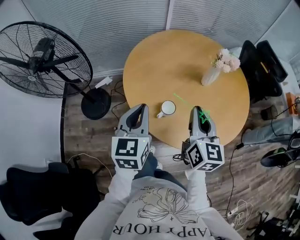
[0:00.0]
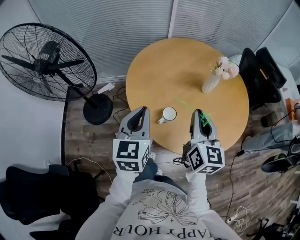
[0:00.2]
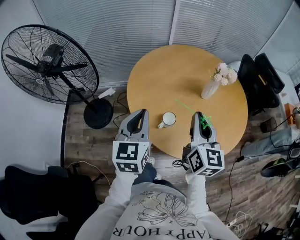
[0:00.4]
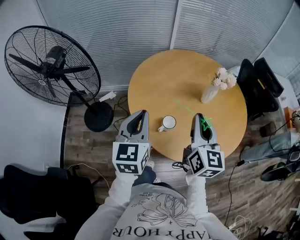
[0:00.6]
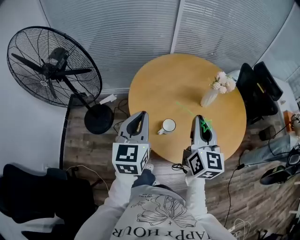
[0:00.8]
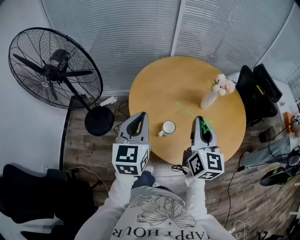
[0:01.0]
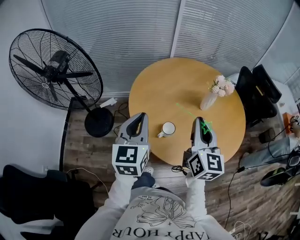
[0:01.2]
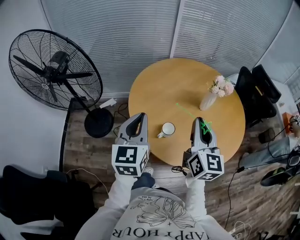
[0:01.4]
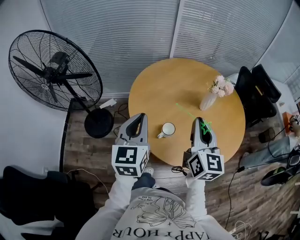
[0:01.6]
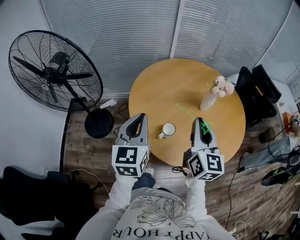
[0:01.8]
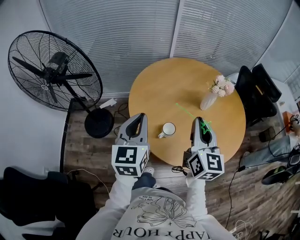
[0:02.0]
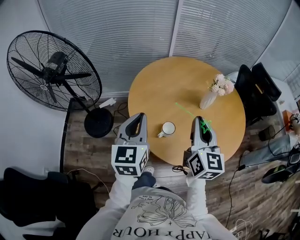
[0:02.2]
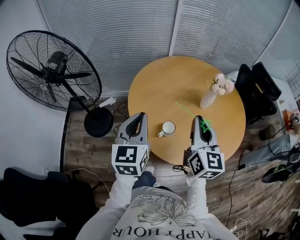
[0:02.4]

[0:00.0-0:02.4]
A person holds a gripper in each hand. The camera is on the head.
0:00.0 to 0:01.2: Both grippers travel together upward, some 5 cm.
0:01.2 to 0:02.4: Neither gripper changes place.

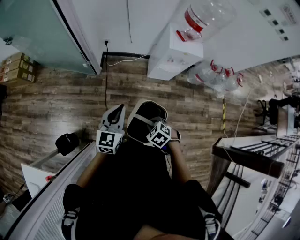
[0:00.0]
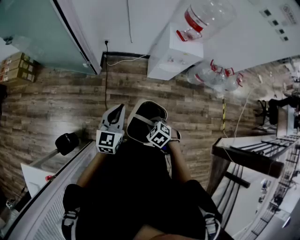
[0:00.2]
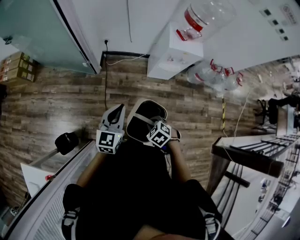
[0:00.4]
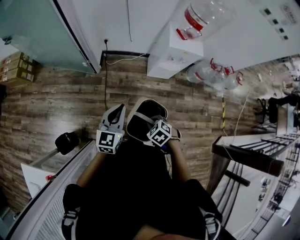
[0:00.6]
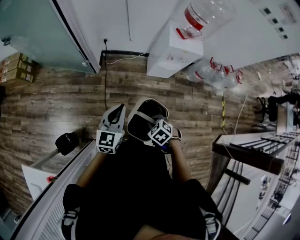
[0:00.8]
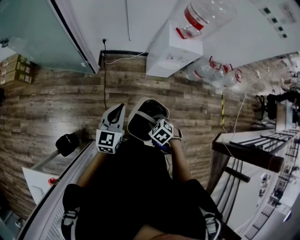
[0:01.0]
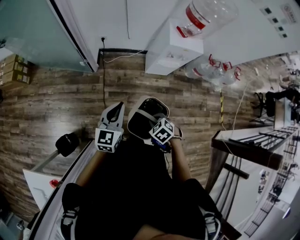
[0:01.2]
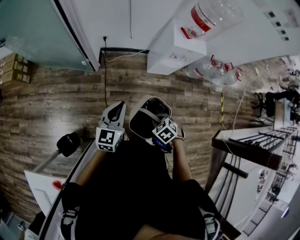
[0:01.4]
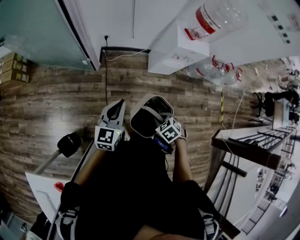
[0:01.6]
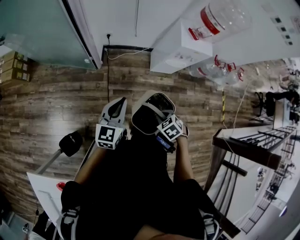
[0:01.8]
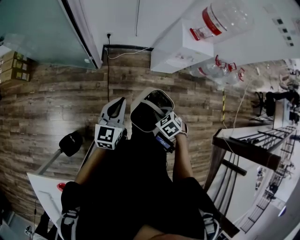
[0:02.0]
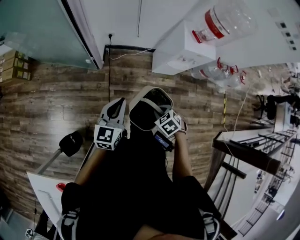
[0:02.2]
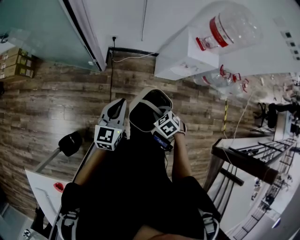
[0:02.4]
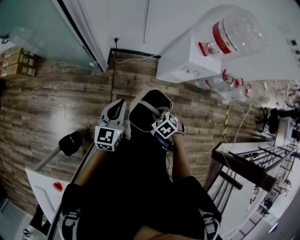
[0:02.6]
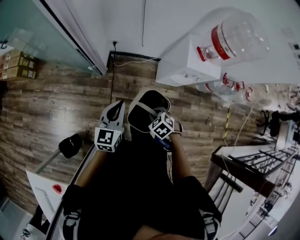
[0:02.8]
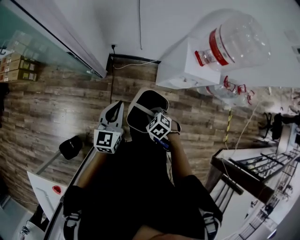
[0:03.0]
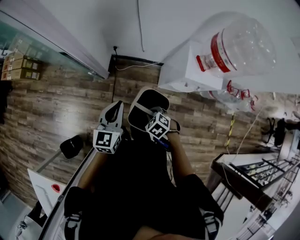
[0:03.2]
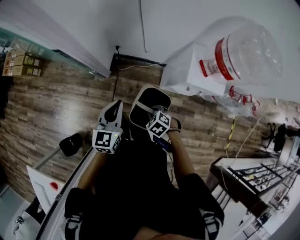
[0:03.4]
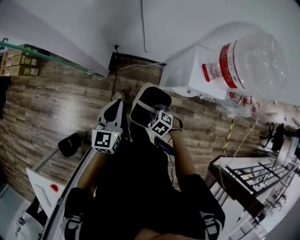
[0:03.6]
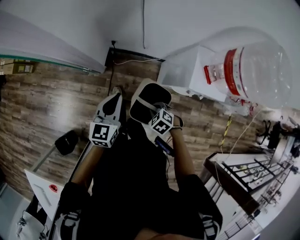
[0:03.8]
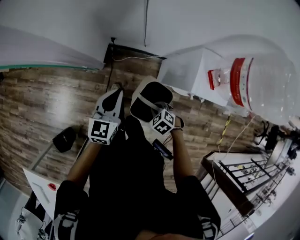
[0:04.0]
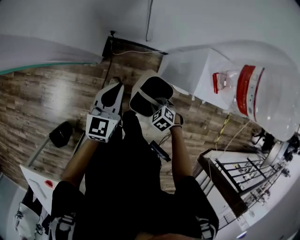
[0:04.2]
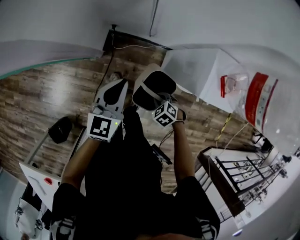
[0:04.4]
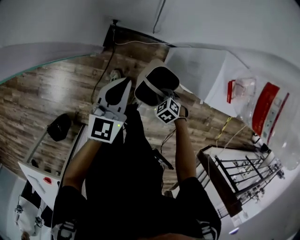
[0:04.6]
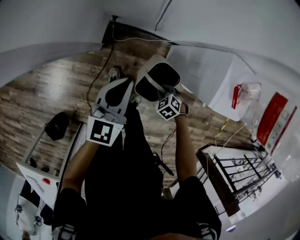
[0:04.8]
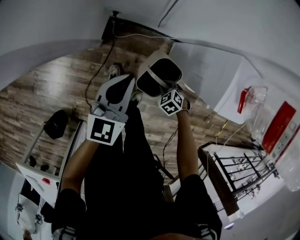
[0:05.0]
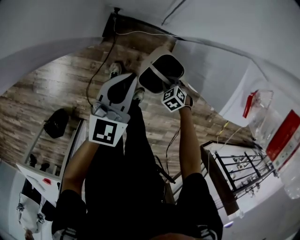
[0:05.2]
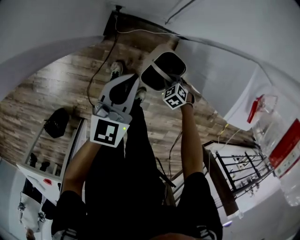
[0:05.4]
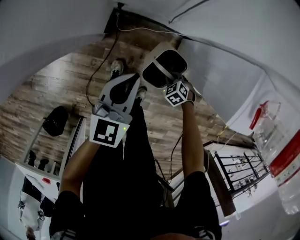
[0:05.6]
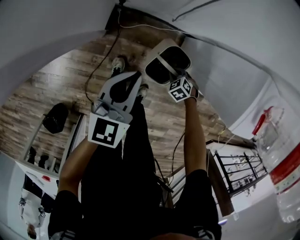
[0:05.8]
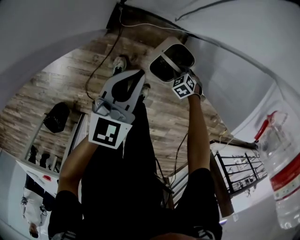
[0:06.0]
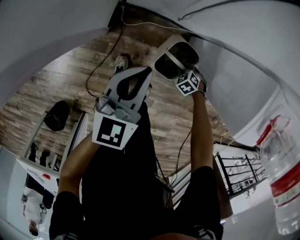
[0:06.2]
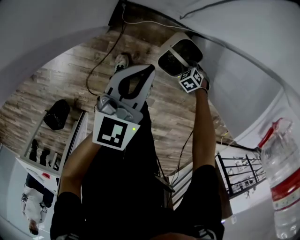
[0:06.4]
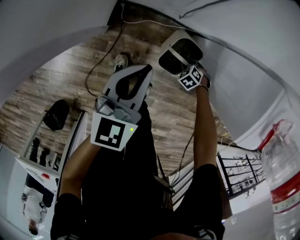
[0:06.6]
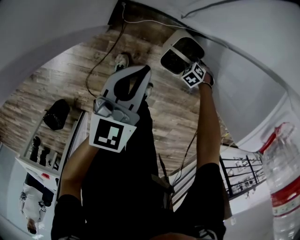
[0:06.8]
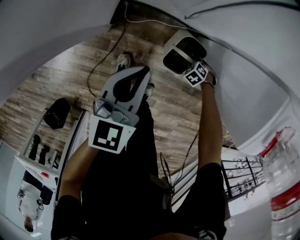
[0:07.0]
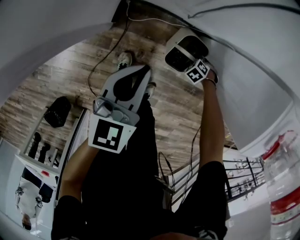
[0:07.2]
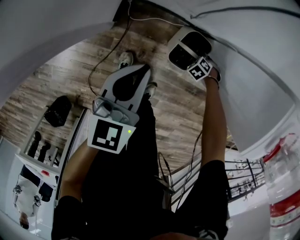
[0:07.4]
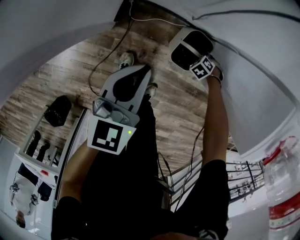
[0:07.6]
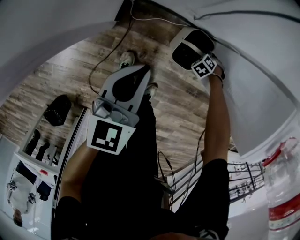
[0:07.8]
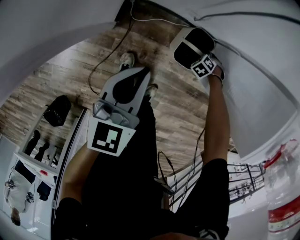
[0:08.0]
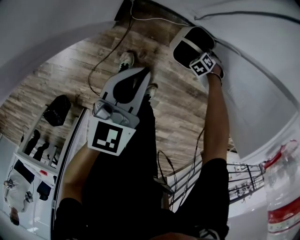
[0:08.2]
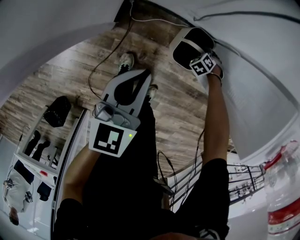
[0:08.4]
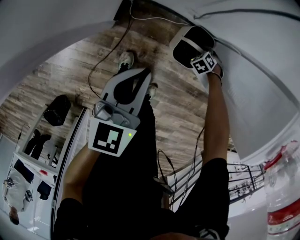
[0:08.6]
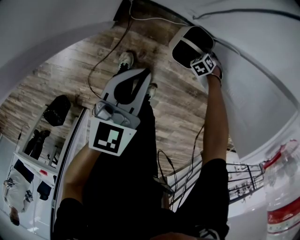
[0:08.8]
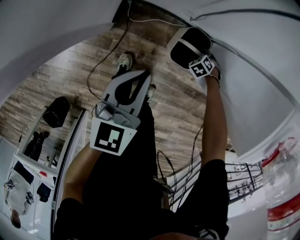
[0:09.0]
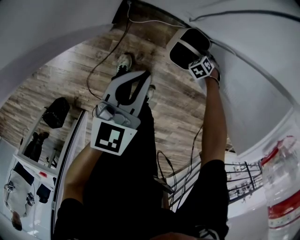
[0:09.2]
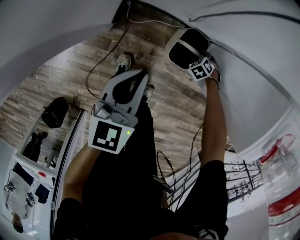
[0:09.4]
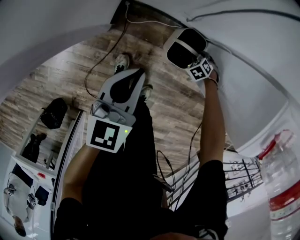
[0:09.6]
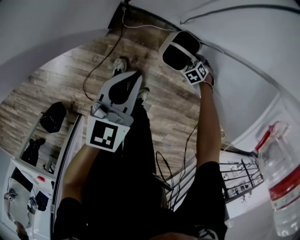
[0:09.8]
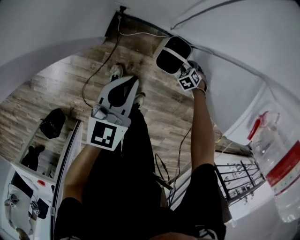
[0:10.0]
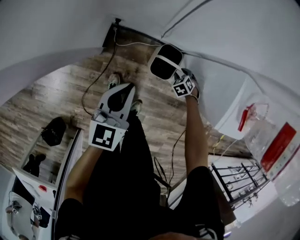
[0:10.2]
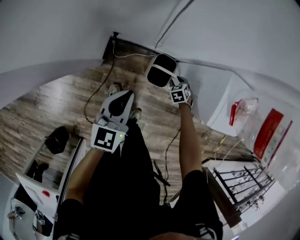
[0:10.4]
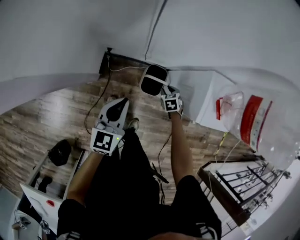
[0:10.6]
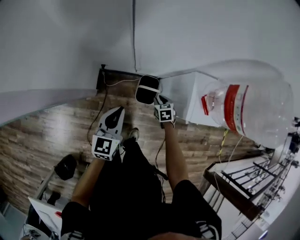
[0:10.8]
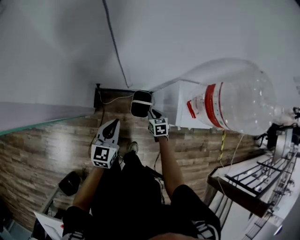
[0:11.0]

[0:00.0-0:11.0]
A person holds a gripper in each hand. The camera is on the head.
0:00.0 to 0:01.6: The right gripper ends up roughly 5 cm from where it was. The left gripper travels to the left and forward by roughly 10 cm.
0:01.6 to 0:03.2: The right gripper heads forward, covering some 25 cm; the left gripper travels forward and to the right by approximately 20 cm.
0:03.2 to 0:04.8: The right gripper shifts some 25 cm downward. The left gripper ends up some 25 cm from where it was.
0:04.8 to 0:06.2: The left gripper shifts some 10 cm downward. Meanwhile the right gripper is displaced downward by some 20 cm.
0:06.2 to 0:07.8: The left gripper goes some 5 cm downward. Meanwhile the right gripper is displaced downward by roughly 10 cm.
0:07.8 to 0:09.4: The right gripper opens up.
0:09.4 to 0:11.0: The left gripper travels upward by roughly 25 cm. The right gripper is displaced upward by roughly 40 cm, and rolls clockwise, seen from behind, by about 50 degrees.

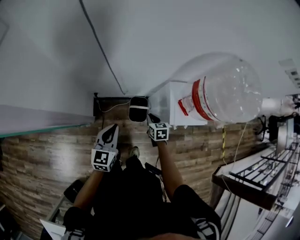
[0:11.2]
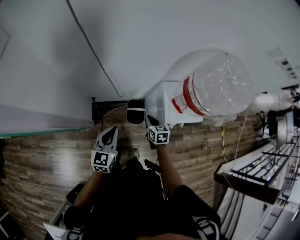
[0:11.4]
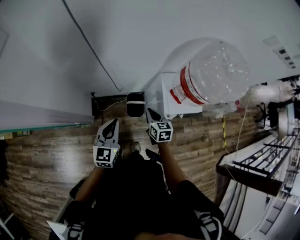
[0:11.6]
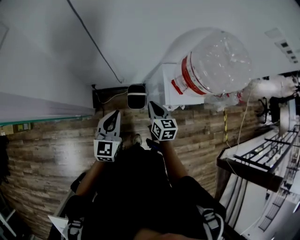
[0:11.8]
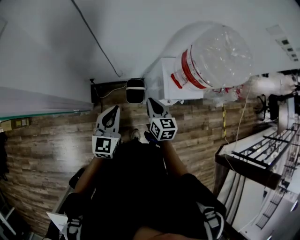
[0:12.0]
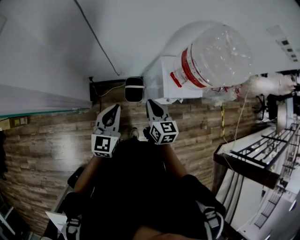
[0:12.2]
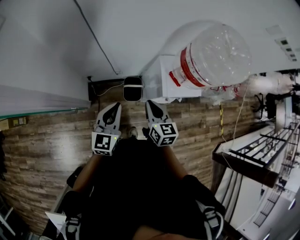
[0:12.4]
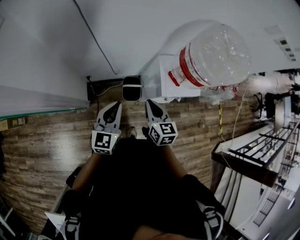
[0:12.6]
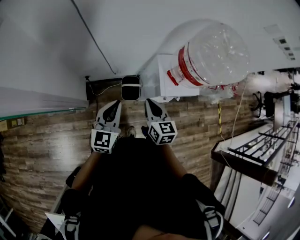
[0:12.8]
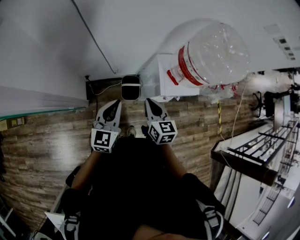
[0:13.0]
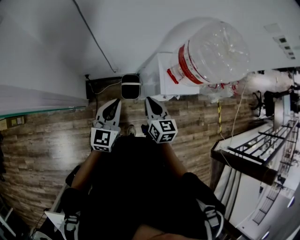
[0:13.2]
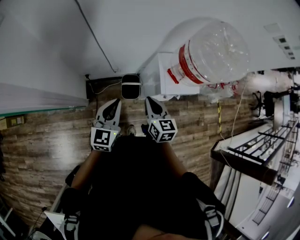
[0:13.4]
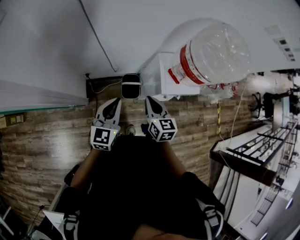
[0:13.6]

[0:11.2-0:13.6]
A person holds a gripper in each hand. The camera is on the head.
0:11.2 to 0:12.4: The right gripper shifts approximately 25 cm upward and backward, and turns by about 20 degrees. The left gripper heads upward, covering roughly 10 cm.
0:12.4 to 0:13.6: Both grippers stay about where they are.

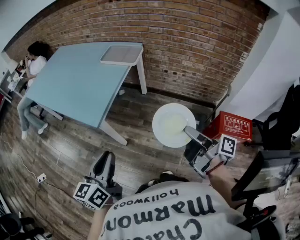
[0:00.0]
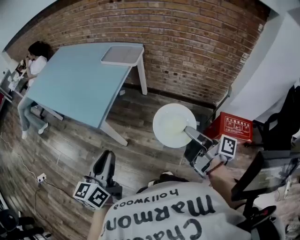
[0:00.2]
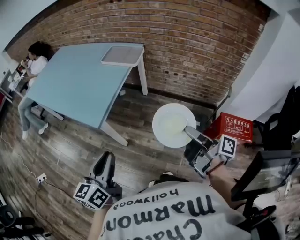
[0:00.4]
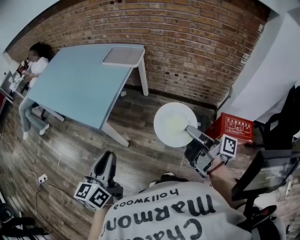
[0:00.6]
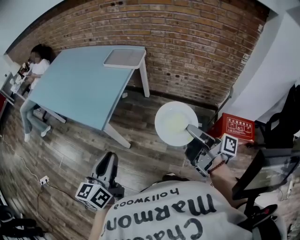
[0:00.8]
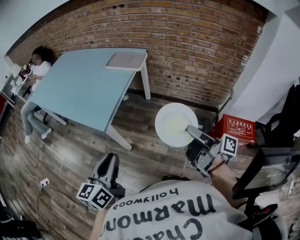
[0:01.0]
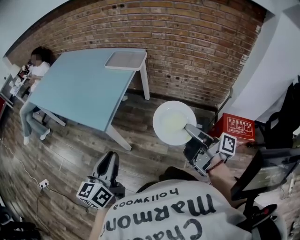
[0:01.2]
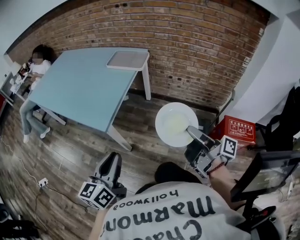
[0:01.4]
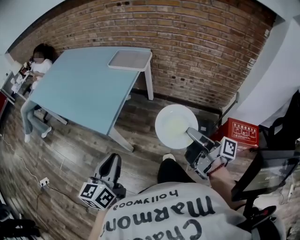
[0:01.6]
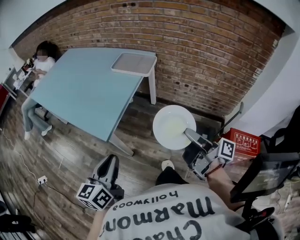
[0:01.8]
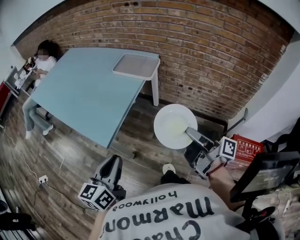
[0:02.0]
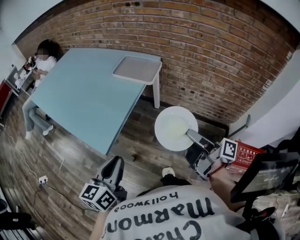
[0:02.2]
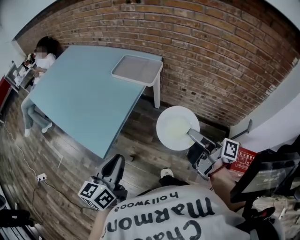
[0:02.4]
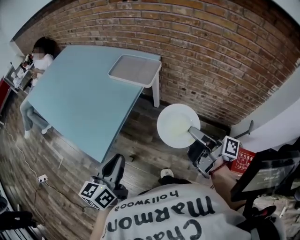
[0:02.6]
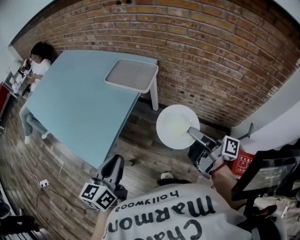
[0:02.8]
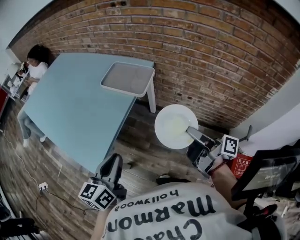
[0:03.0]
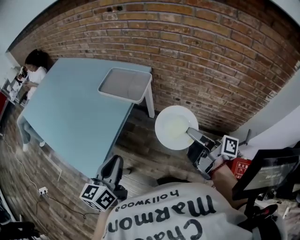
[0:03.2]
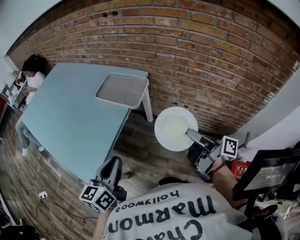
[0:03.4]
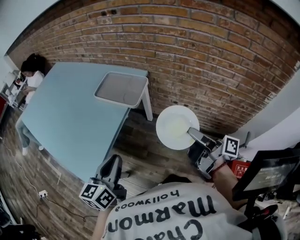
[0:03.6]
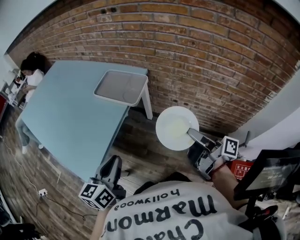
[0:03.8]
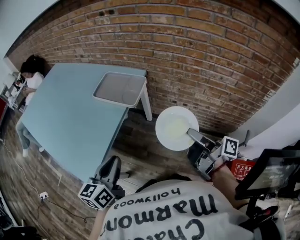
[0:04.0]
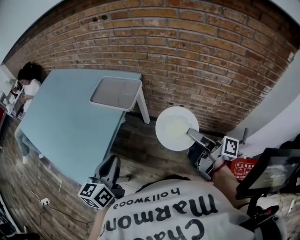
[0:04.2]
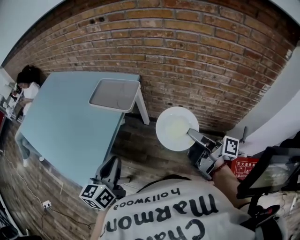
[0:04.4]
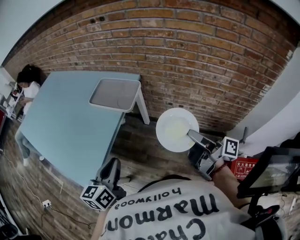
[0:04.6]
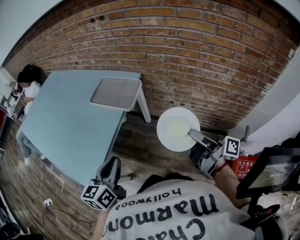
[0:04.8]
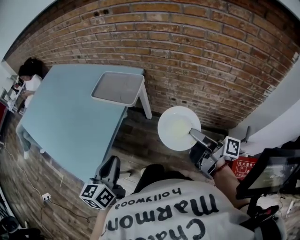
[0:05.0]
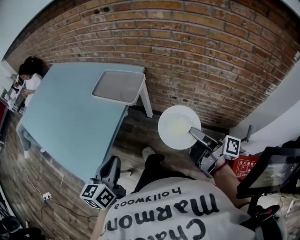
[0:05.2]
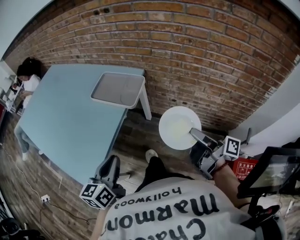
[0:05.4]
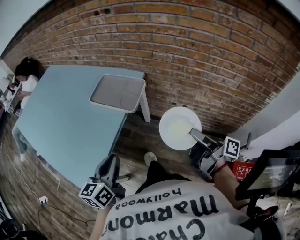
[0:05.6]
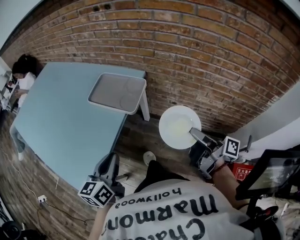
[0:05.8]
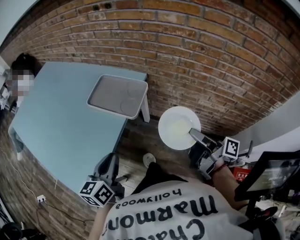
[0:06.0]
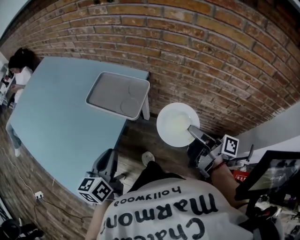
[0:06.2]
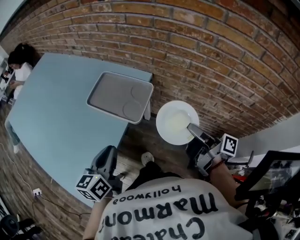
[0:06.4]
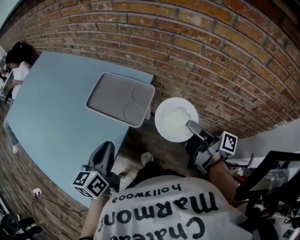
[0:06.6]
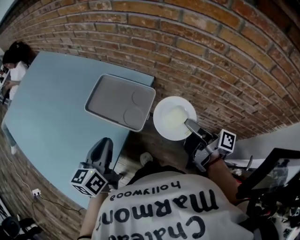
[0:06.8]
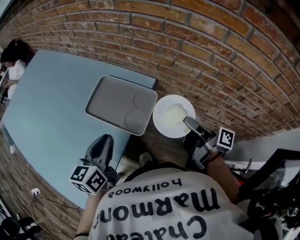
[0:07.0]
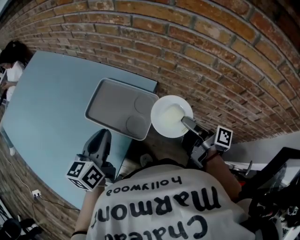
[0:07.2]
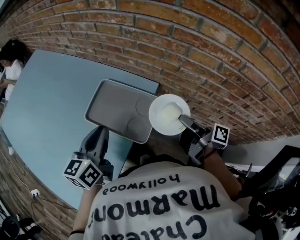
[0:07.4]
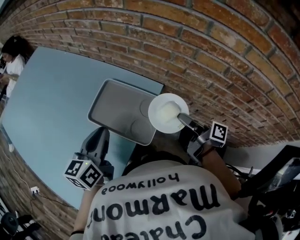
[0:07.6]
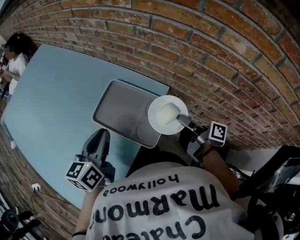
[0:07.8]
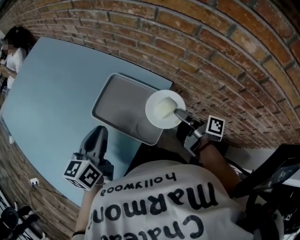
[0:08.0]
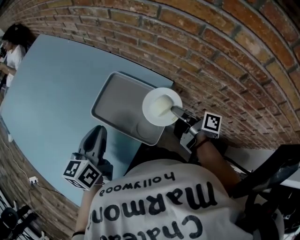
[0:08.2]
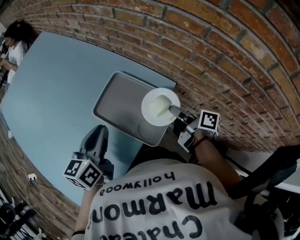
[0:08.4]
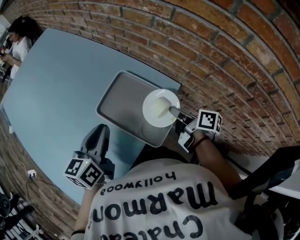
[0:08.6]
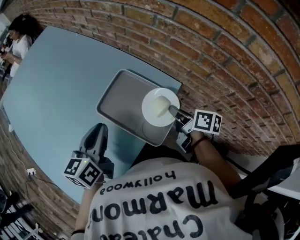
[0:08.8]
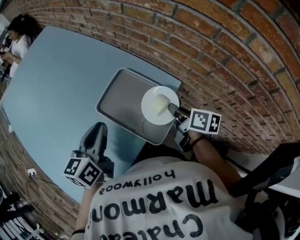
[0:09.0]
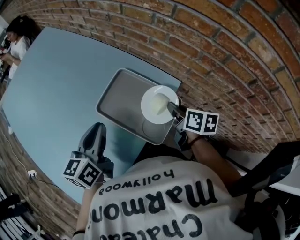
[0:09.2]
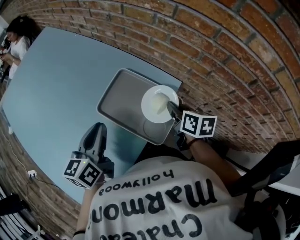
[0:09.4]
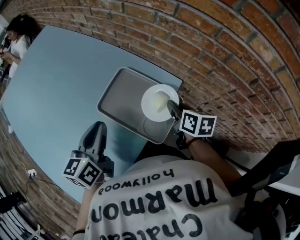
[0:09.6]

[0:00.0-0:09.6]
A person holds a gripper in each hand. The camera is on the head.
0:00.0 to 0:01.6: The grippers make only small movements.
0:01.6 to 0:03.2: The left gripper is displaced forward and to the right by approximately 30 cm. Meanwhile the right gripper heads forward, covering some 30 cm.
0:03.2 to 0:04.8: The right gripper shifts some 5 cm to the right.
0:04.8 to 0:06.4: The two grippers go approximately 20 cm forward.
0:06.4 to 0:08.0: The grippers both shift forward by approximately 20 cm.
0:08.0 to 0:09.6: The right gripper ends up some 5 cm from where it was, and rotates around the line of its fingers by about 40 degrees, counterclockwise from behind.
